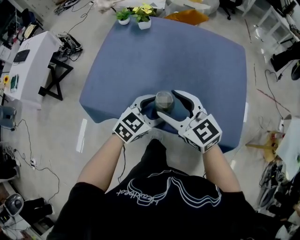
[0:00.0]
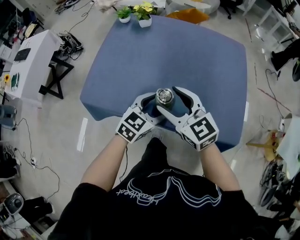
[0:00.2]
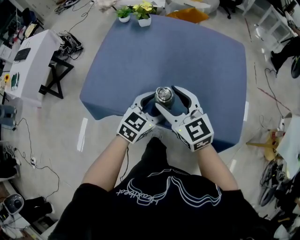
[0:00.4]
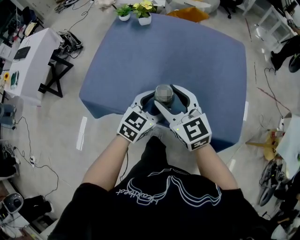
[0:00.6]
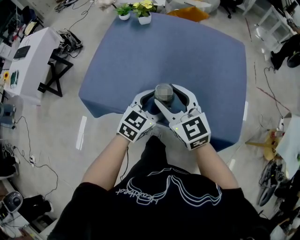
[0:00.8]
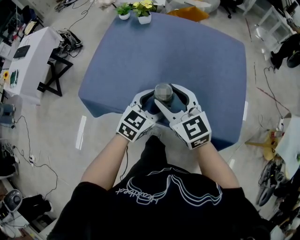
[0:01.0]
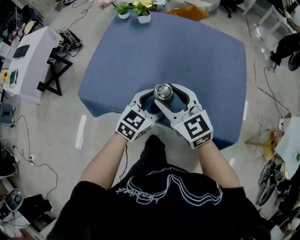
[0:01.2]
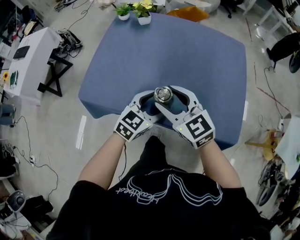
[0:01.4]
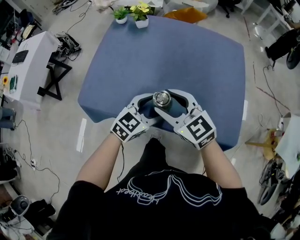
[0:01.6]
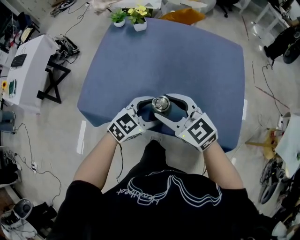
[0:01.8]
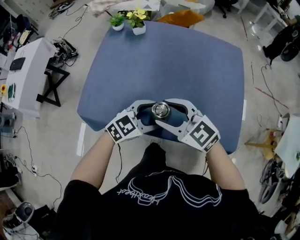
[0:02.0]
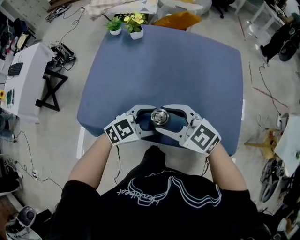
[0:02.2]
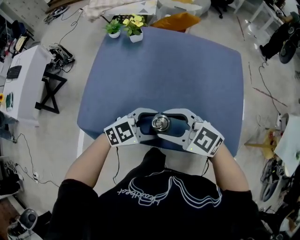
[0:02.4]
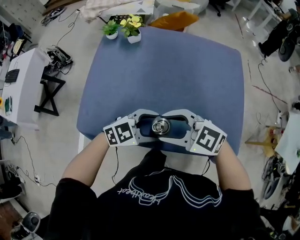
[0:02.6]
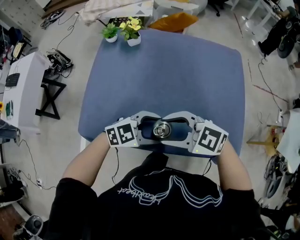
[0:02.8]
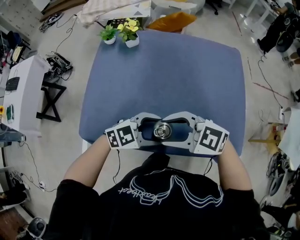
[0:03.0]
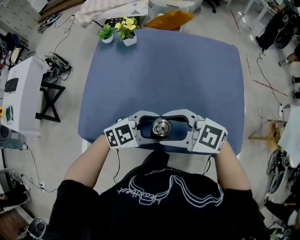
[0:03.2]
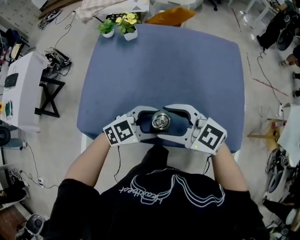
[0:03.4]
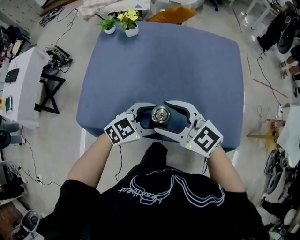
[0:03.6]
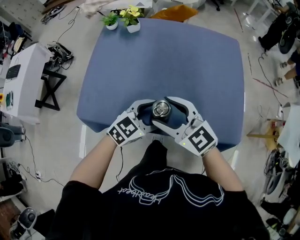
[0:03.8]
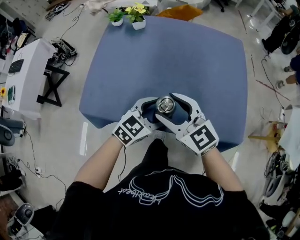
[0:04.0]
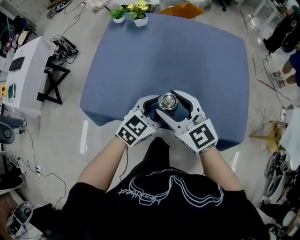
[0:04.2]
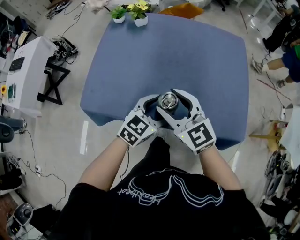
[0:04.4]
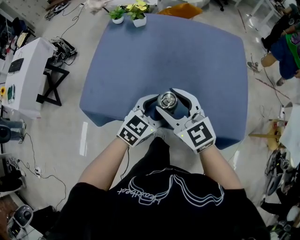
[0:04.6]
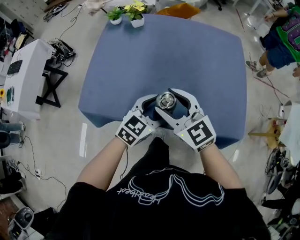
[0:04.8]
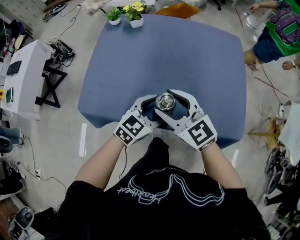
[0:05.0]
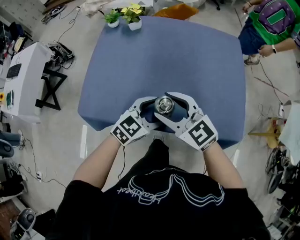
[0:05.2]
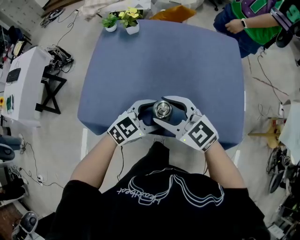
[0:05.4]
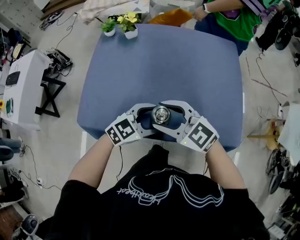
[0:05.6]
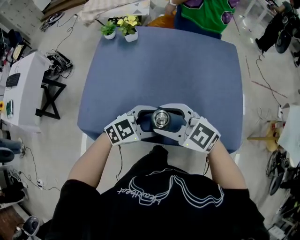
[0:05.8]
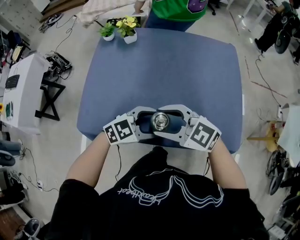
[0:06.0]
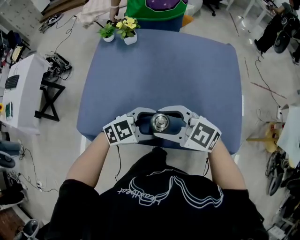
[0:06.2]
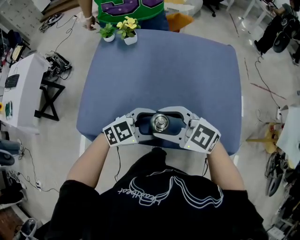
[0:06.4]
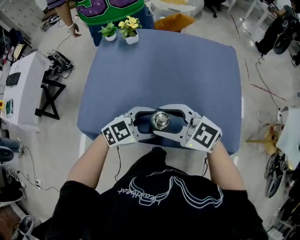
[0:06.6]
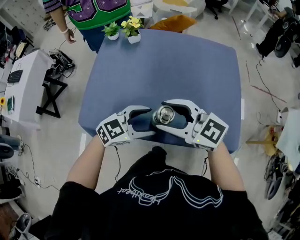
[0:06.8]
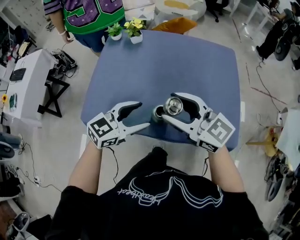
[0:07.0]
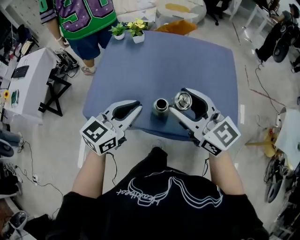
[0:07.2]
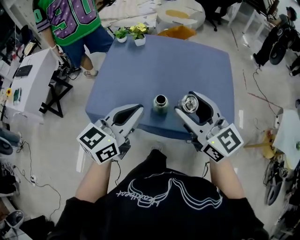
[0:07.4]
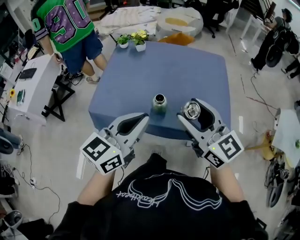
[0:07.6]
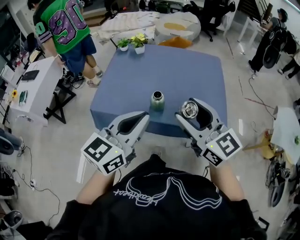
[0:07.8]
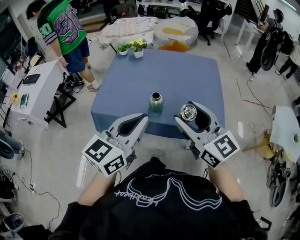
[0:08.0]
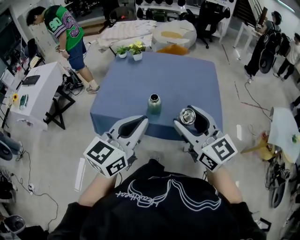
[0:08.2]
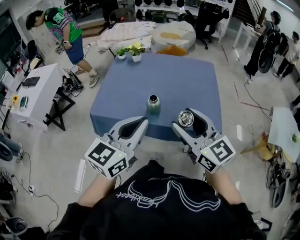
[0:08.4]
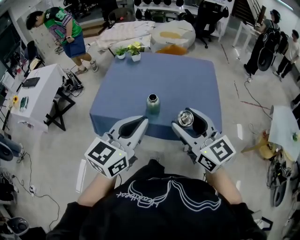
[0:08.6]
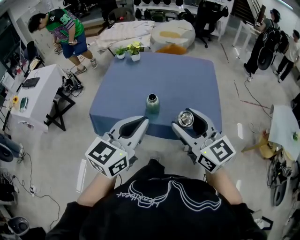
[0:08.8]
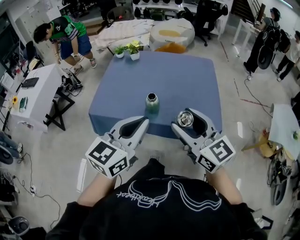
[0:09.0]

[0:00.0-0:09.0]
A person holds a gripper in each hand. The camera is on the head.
0:00.0 to 0:01.6: The grippers make only small movements.
0:01.6 to 0:03.0: The right gripper swivels about 30 degrees, while the left gripper swivels about 40 degrees.
0:03.0 to 0:04.4: The left gripper changes its angle by roughly 40 degrees; the right gripper rotates some 40 degrees.
0:04.4 to 0:06.0: The left gripper swivels approximately 30 degrees; the right gripper rotates approximately 30 degrees.
0:06.0 to 0:07.6: The grippers both shift upward by about 20 cm. The right gripper rotates roughly 40 degrees. The left gripper turns by some 50 degrees, and closes.
0:07.6 to 0:09.0: The two grippers go approximately 5 cm backward.

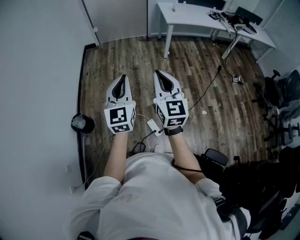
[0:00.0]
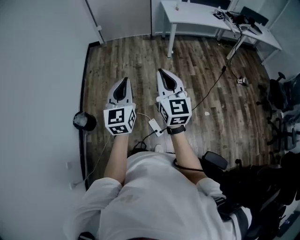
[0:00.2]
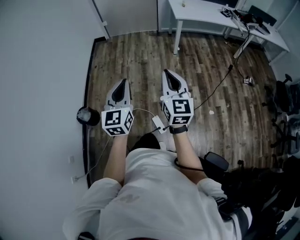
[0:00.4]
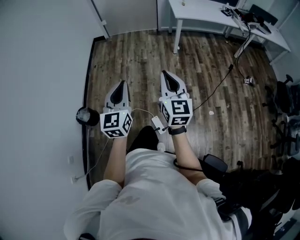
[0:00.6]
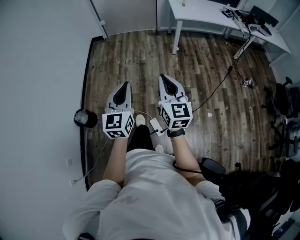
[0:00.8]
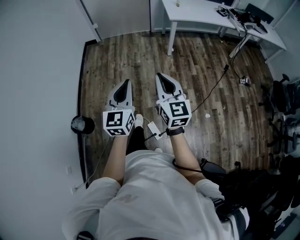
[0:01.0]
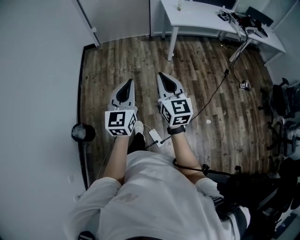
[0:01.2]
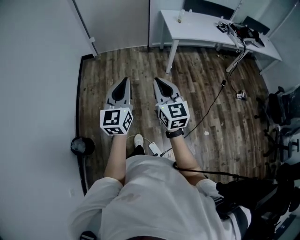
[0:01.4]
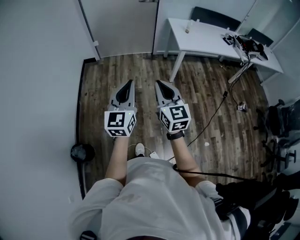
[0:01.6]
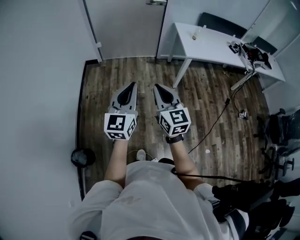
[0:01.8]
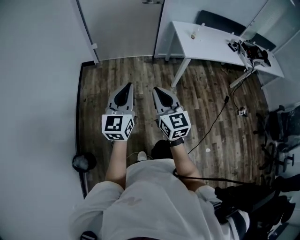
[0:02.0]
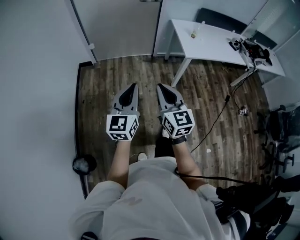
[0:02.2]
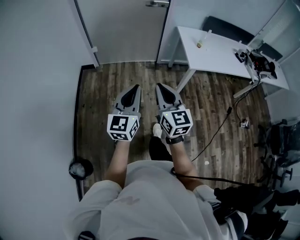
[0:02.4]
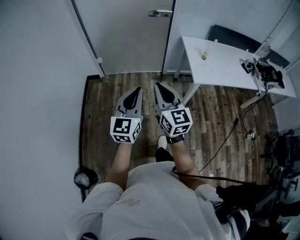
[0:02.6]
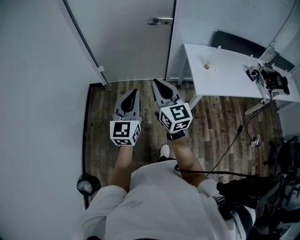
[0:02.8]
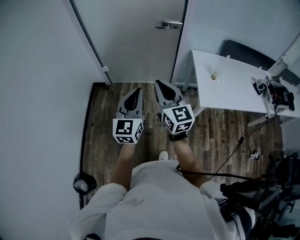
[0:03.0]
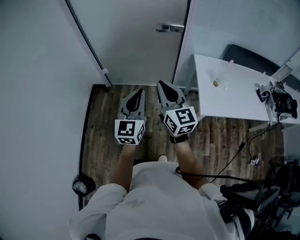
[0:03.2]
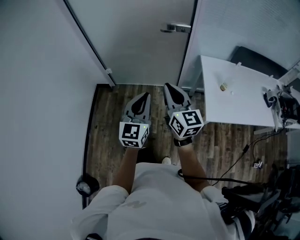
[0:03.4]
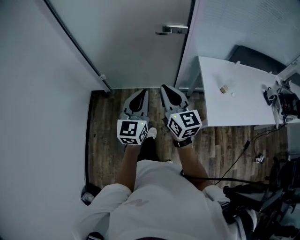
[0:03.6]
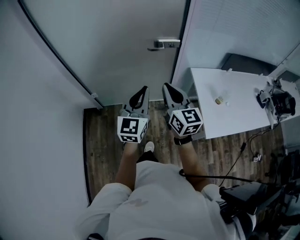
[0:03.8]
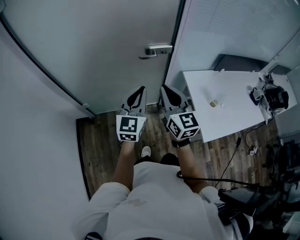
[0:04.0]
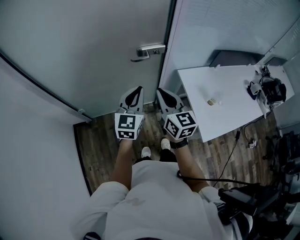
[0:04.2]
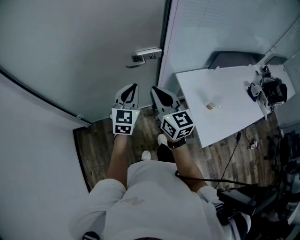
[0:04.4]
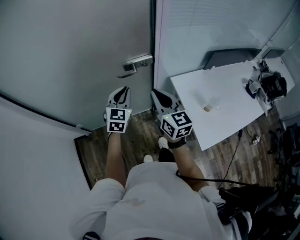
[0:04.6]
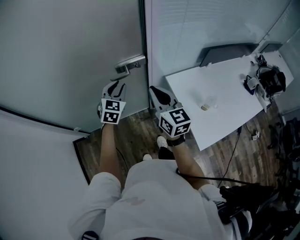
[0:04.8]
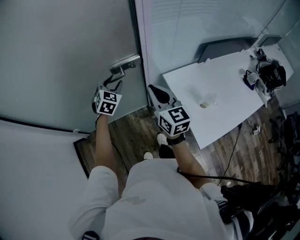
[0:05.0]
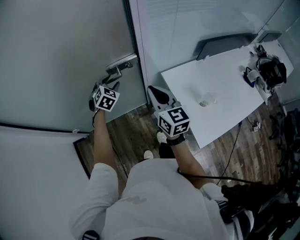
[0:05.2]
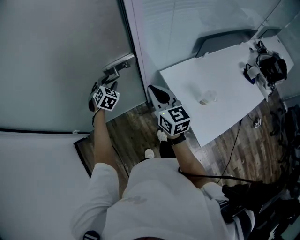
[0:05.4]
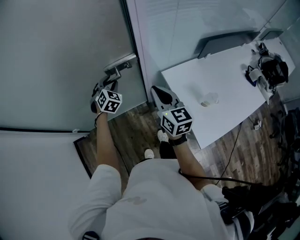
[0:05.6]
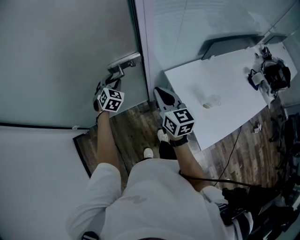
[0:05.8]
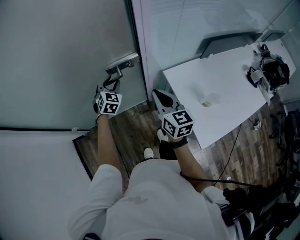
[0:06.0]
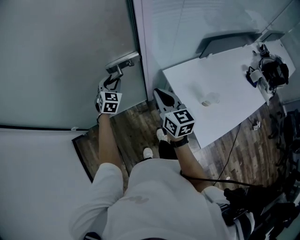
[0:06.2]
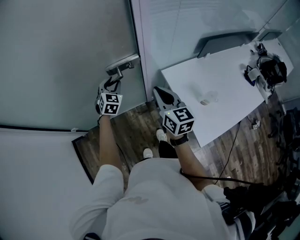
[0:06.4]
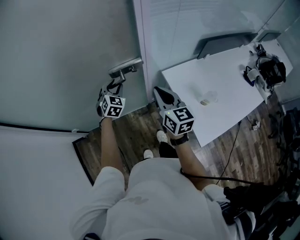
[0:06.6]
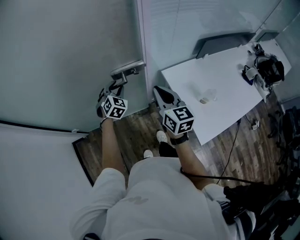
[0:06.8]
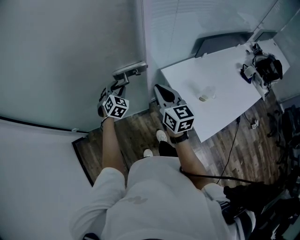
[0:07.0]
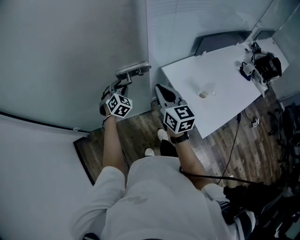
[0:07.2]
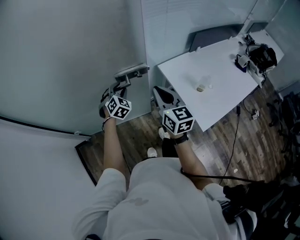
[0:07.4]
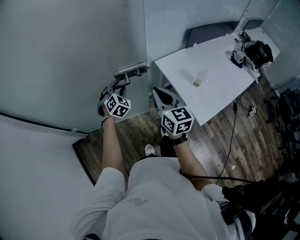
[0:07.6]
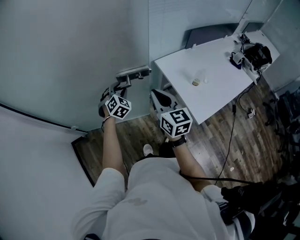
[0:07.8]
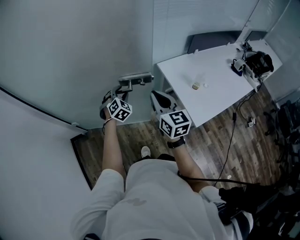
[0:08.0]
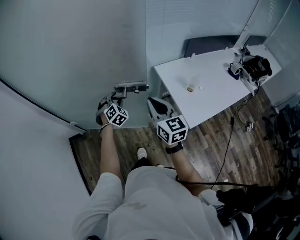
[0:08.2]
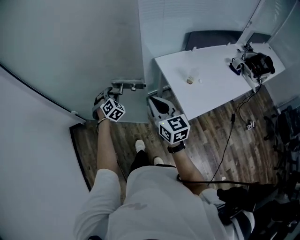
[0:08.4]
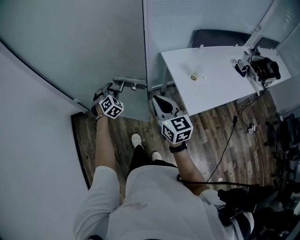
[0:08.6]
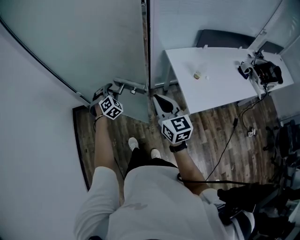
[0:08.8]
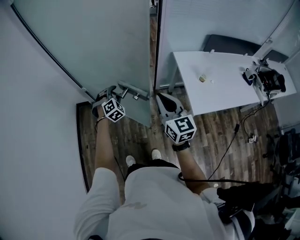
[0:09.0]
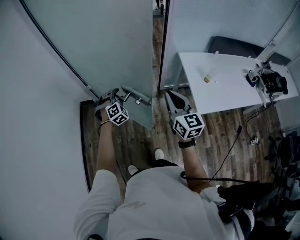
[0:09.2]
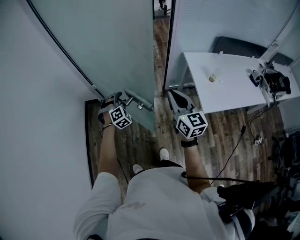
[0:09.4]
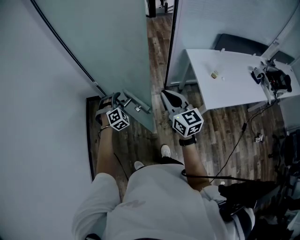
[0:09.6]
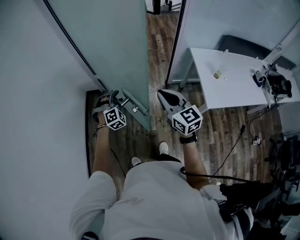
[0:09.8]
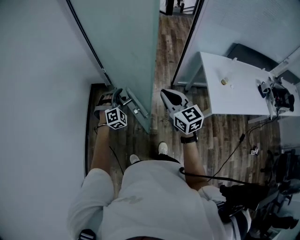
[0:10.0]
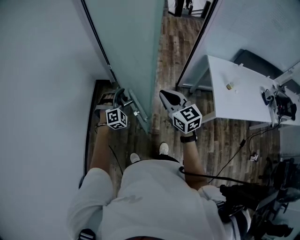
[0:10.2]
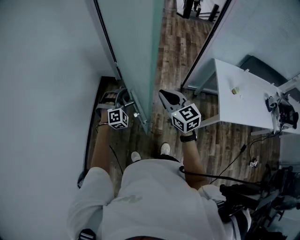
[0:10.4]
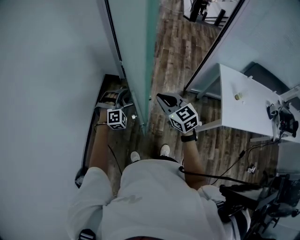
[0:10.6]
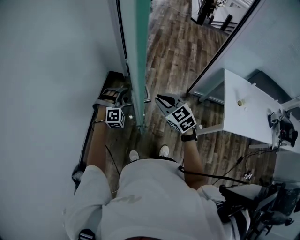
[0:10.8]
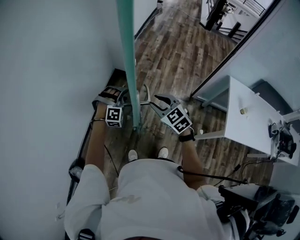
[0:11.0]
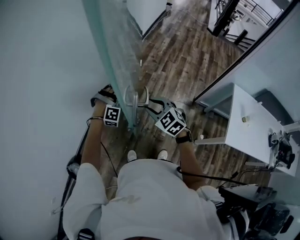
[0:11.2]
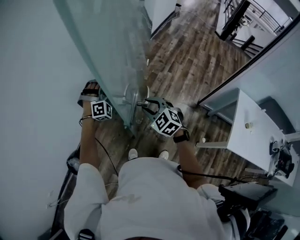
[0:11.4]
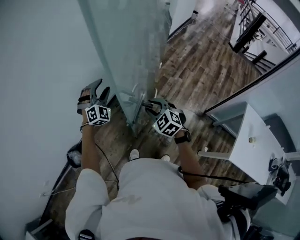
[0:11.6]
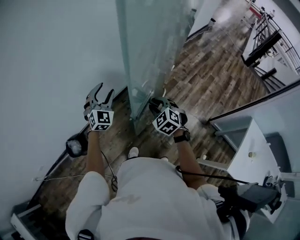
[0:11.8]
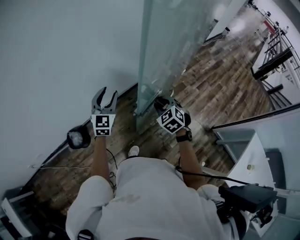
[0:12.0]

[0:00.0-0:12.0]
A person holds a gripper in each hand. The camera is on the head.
0:00.0 to 0:01.6: Both grippers move forward, roughly 35 cm.
0:01.6 to 0:03.0: Both grippers are carried forward, some 50 cm.
0:03.0 to 0:04.4: The two grippers travel together, forward, roughly 50 cm. The left gripper changes its angle by about 30 degrees.
0:04.4 to 0:06.0: The left gripper is displaced forward and downward by approximately 25 cm, turns by approximately 30 degrees, and opens up. The right gripper is displaced forward, to the right and downward by approximately 20 cm.
0:06.0 to 0:07.6: Both grippers move backward, about 15 cm.
0:07.6 to 0:09.0: The left gripper shifts some 30 cm backward and to the left. Meanwhile the right gripper is displaced backward by roughly 25 cm, and swivels approximately 20 degrees.
0:09.0 to 0:10.4: The right gripper travels to the left by approximately 25 cm, and turns by about 30 degrees. Meanwhile the left gripper is displaced to the left and backward by some 25 cm.
0:10.4 to 0:12.0: The right gripper changes place by roughly 35 cm, angles its fingers downward, by about 30 degrees, and opens up, while the left gripper ends up about 40 cm from where it was, and twists approximately 70 degrees counterclockwise, seen from behind.

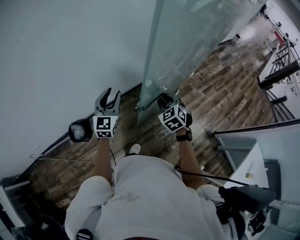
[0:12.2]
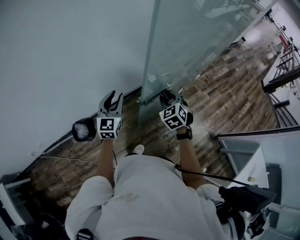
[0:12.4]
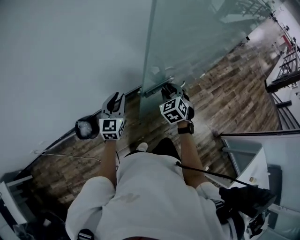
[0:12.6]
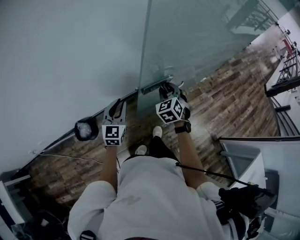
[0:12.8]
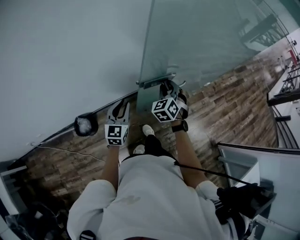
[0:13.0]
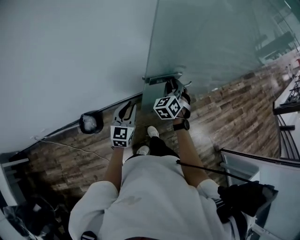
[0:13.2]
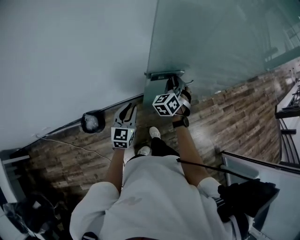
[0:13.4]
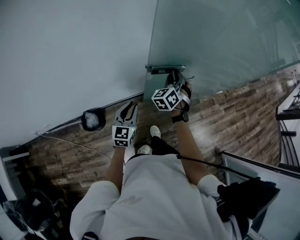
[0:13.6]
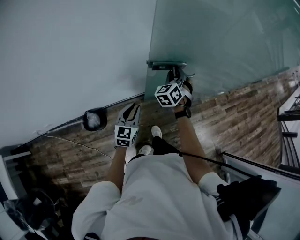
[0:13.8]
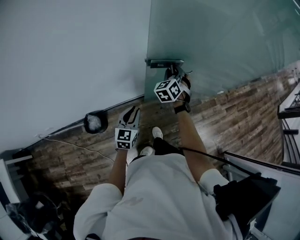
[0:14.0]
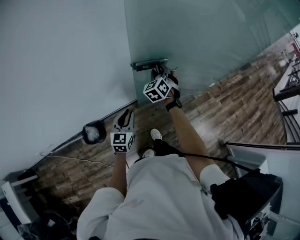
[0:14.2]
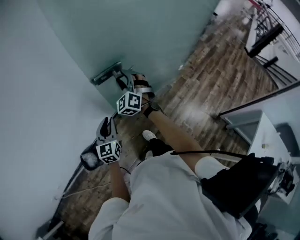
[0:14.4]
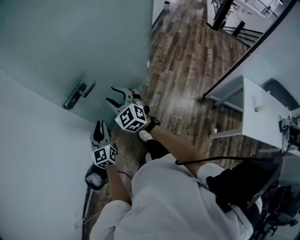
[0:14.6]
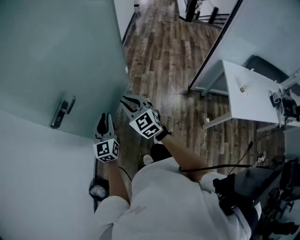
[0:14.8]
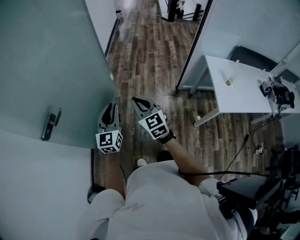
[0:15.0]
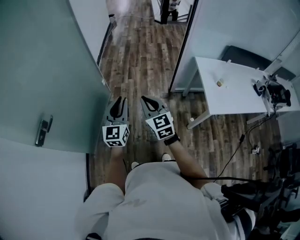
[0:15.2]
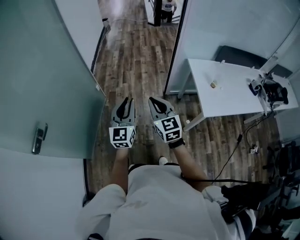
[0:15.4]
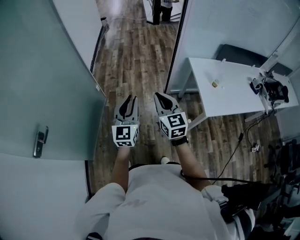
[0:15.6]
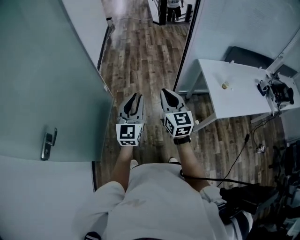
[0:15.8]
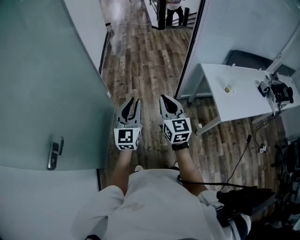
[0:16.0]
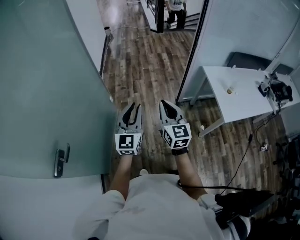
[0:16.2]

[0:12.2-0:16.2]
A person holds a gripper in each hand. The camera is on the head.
0:12.2 to 0:13.6: The right gripper is displaced forward and to the left by about 30 cm, and changes its angle by approximately 20 degrees. Meanwhile the left gripper is displaced to the left, downward and forward by roughly 20 cm.
0:13.6 to 0:14.8: The right gripper is displaced to the right, backward and upward by some 40 cm, rotates approximately 40 degrees, and opens, then closes again. Meanwhile the left gripper travels to the right and upward by about 35 cm, and swivels about 40 degrees.
0:14.8 to 0:16.2: The right gripper changes place by some 30 cm, and swivels about 40 degrees. Meanwhile the left gripper moves some 30 cm, and rotates roughly 30 degrees.
